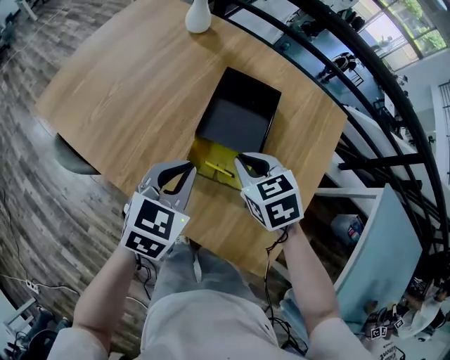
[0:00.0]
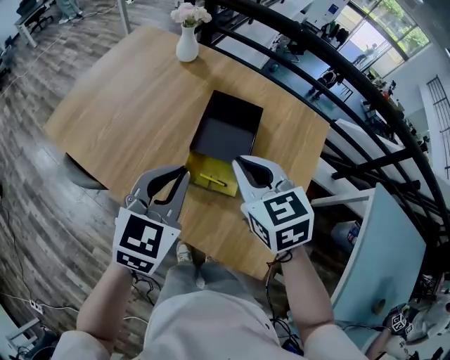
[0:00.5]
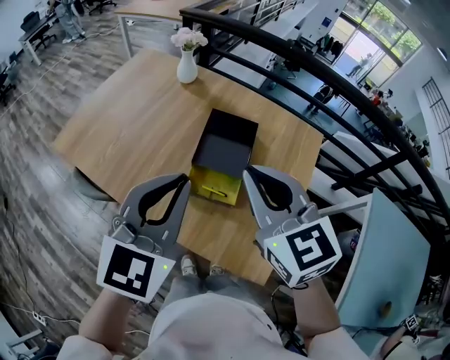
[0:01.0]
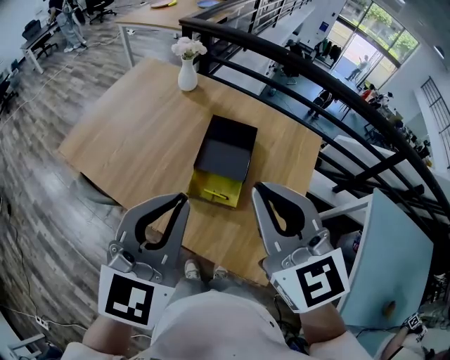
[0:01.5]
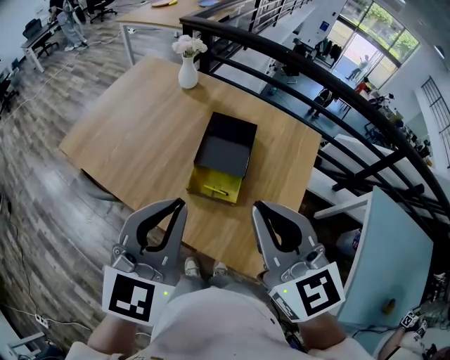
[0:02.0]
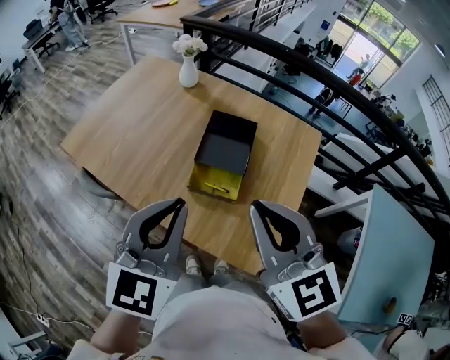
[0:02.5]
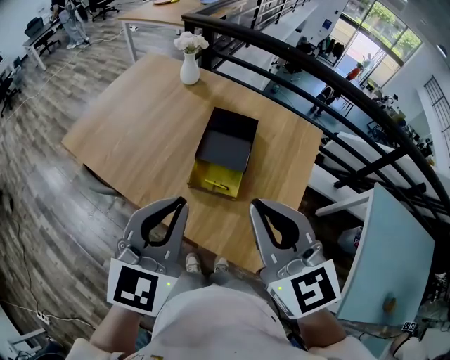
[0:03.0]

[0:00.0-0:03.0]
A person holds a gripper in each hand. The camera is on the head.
0:00.0 to 0:01.5: The two grippers go some 35 cm upward and backward. The left gripper turns by roughly 30 degrees. Meanwhile the right gripper angles its fingers upward, by about 40 degrees.
0:01.5 to 0:03.0: The right gripper moves roughly 5 cm.

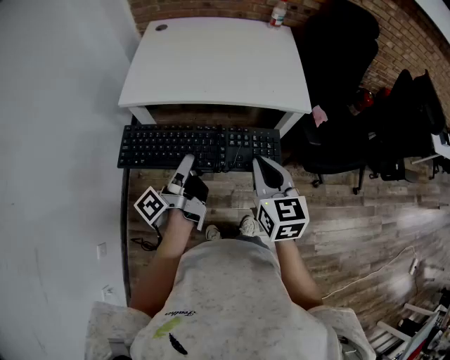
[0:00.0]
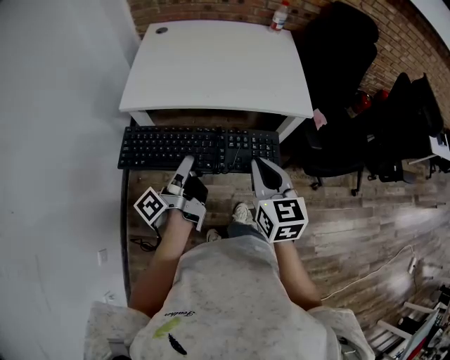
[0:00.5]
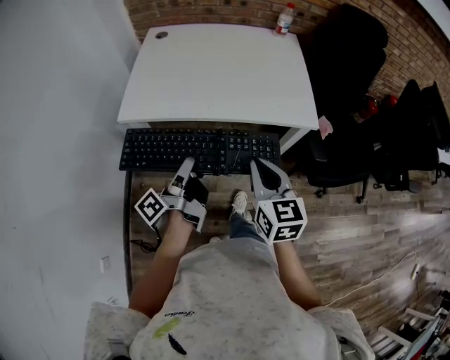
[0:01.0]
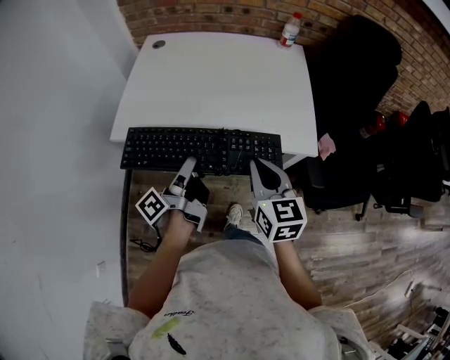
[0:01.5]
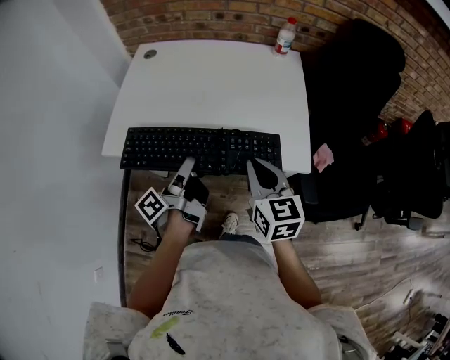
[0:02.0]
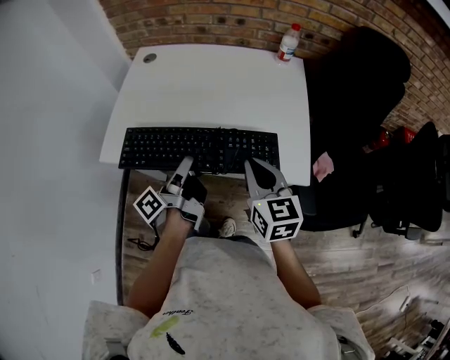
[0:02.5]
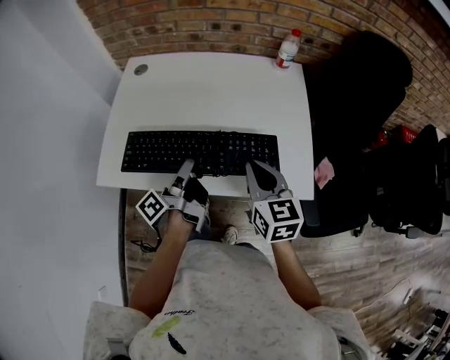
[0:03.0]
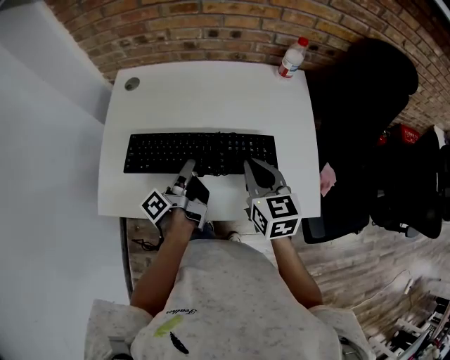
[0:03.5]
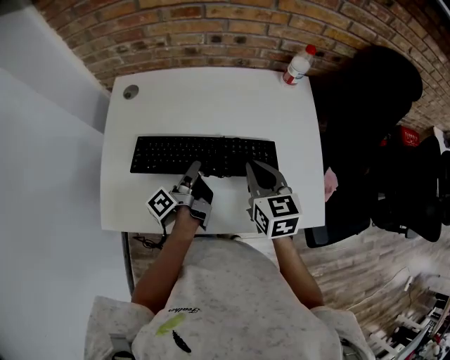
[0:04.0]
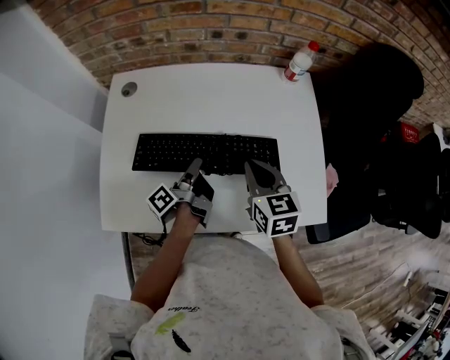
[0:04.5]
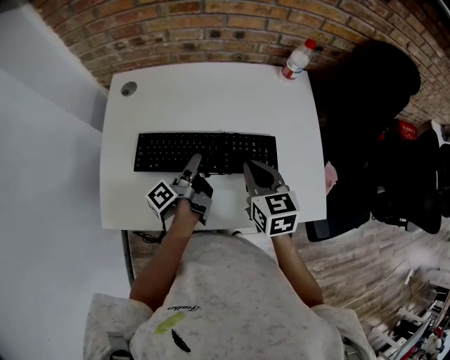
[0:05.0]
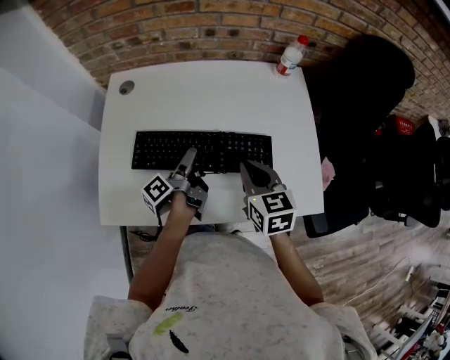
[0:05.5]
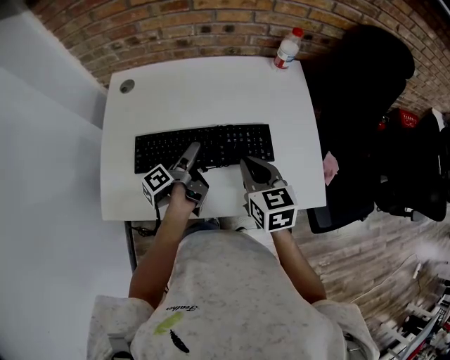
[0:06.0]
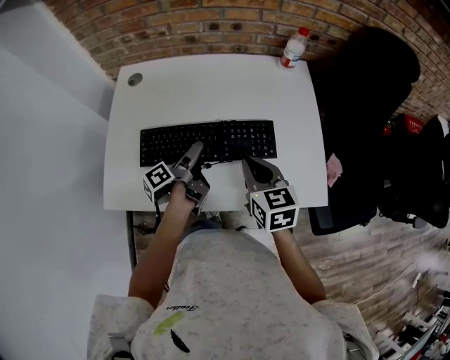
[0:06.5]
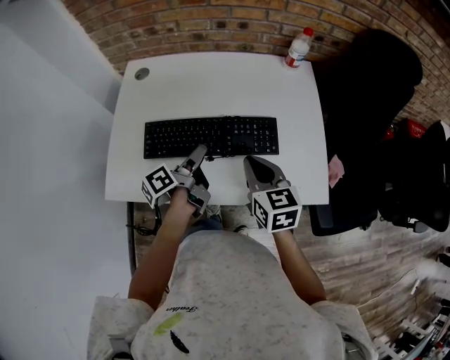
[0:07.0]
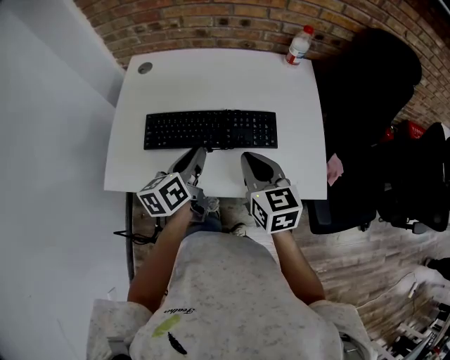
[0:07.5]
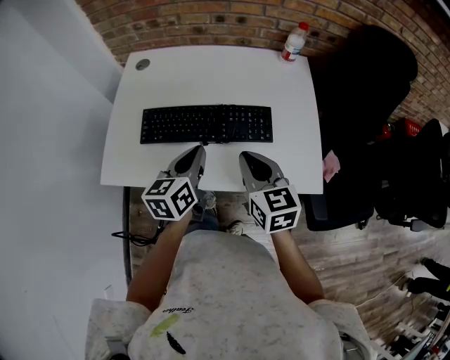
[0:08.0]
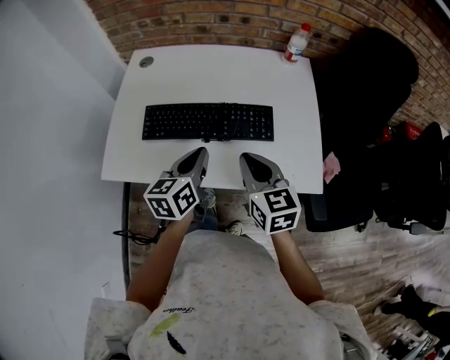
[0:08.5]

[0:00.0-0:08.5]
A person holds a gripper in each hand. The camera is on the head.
0:00.0 to 0:02.0: The right gripper shifts by some 30 cm.
0:02.0 to 0:04.0: The right gripper changes place by about 25 cm.
0:04.0 to 0:06.5: The right gripper ends up approximately 5 cm from where it was.
0:06.5 to 0:08.5: The right gripper shifts by approximately 10 cm.

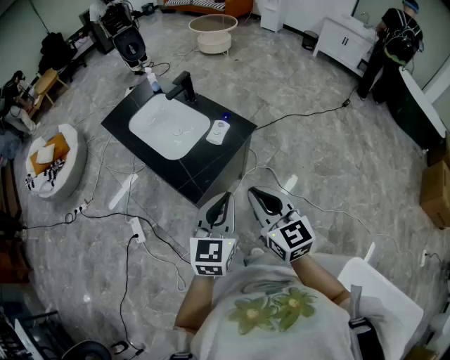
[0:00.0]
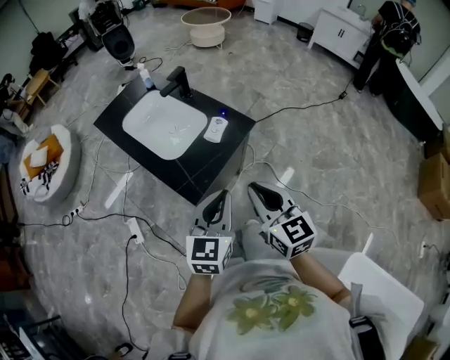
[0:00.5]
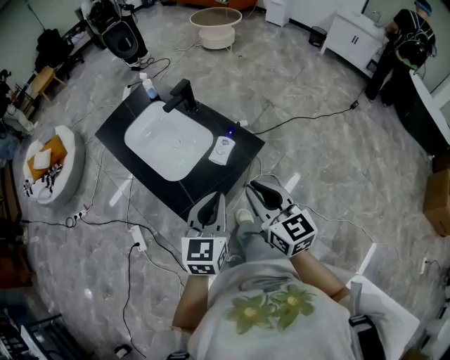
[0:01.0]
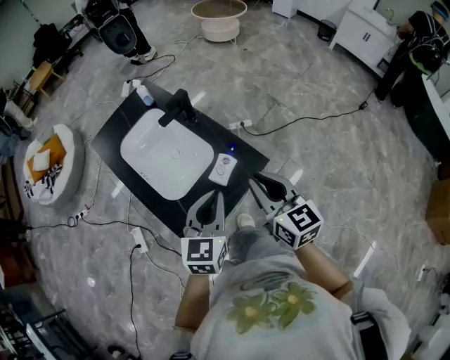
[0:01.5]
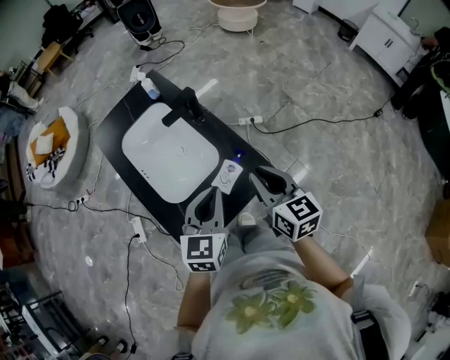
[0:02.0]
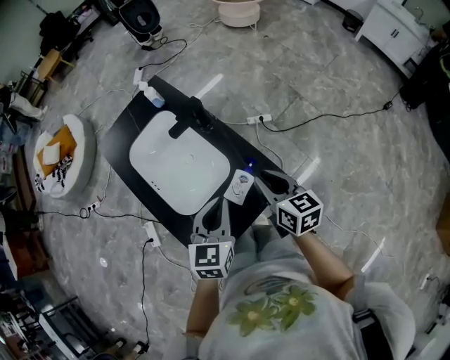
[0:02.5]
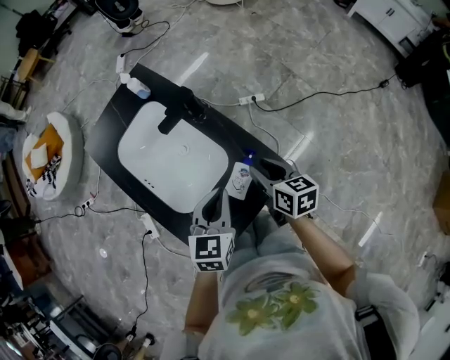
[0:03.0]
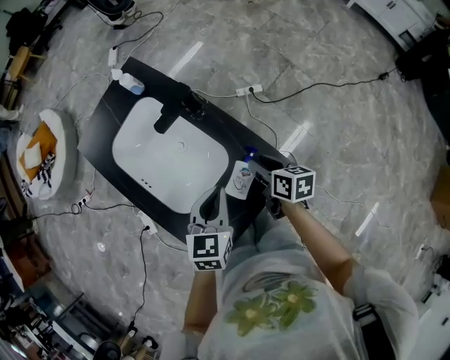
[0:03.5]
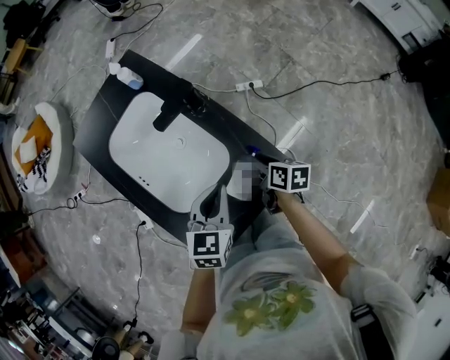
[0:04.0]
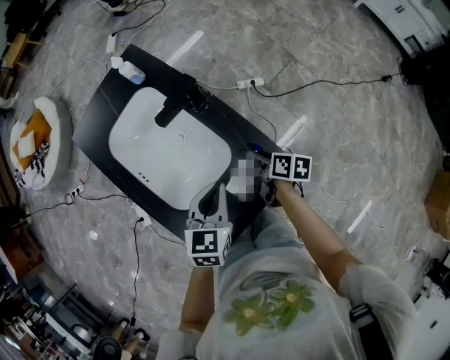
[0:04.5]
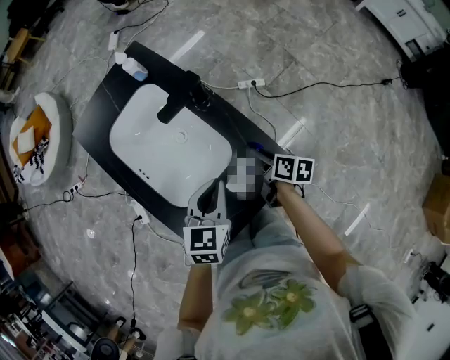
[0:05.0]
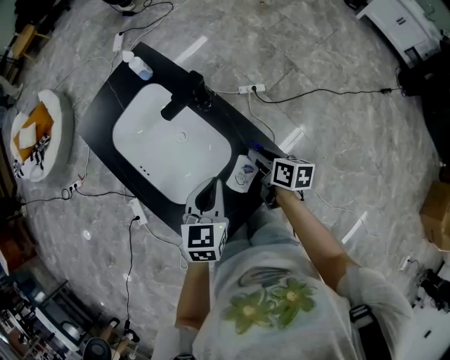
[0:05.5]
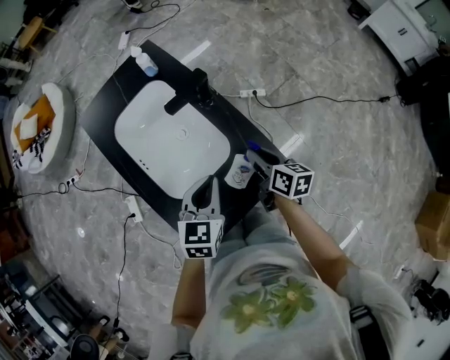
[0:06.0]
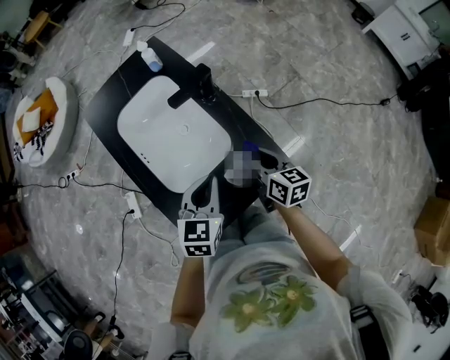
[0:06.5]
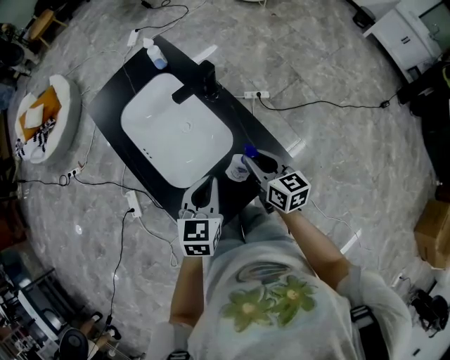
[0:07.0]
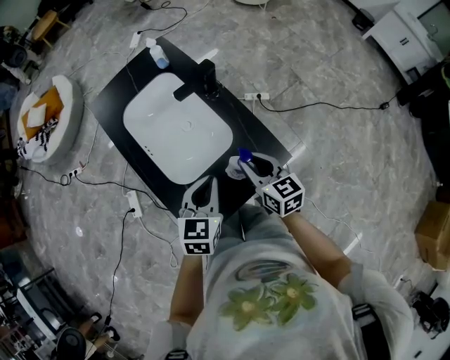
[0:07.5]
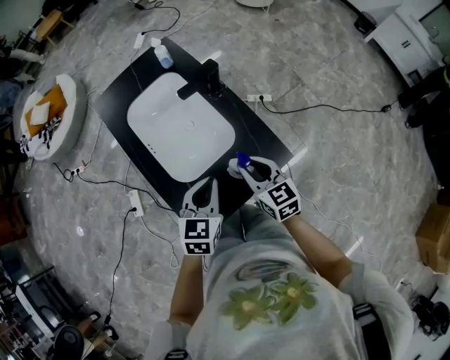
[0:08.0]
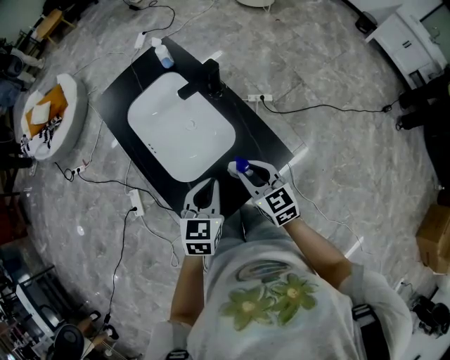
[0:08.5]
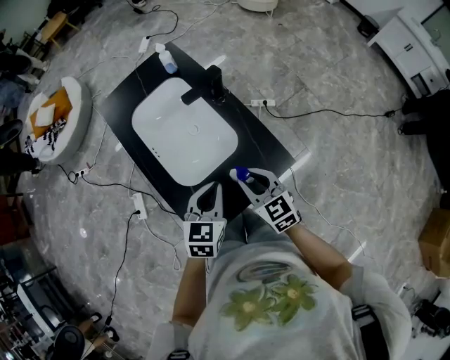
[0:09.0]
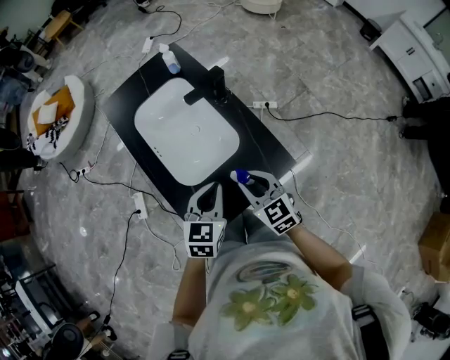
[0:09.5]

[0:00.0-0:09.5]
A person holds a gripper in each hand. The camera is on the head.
0:00.0 to 0:02.0: The two grippers go roughly 40 cm forward.
0:02.0 to 0:04.0: The left gripper travels downward and forward by roughly 15 cm; the right gripper travels downward and forward by some 30 cm, rotates some 40 degrees, and opens its fingers.
0:04.0 to 0:05.5: The grippers make only small movements.
0:05.5 to 0:07.5: The right gripper moves upward, backward and to the left, roughly 15 cm, and swivels about 40 degrees; the left gripper shifts about 10 cm backward.
0:07.5 to 0:09.5: The right gripper shifts by about 5 cm, and swivels about 20 degrees.

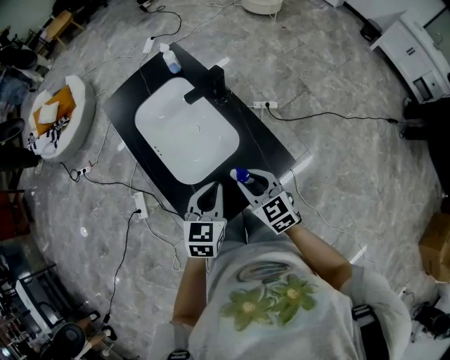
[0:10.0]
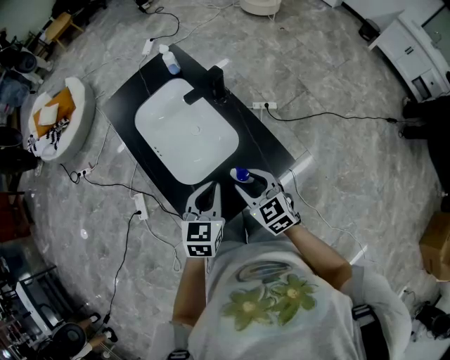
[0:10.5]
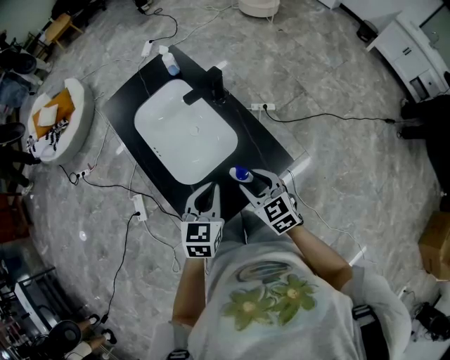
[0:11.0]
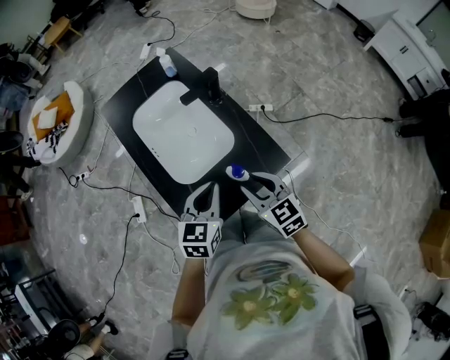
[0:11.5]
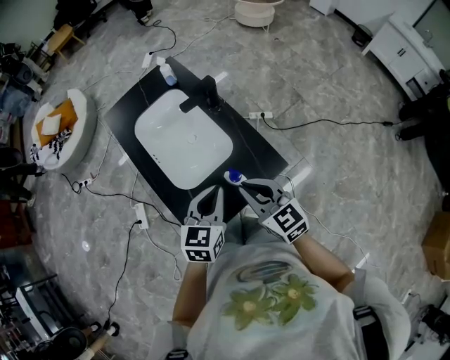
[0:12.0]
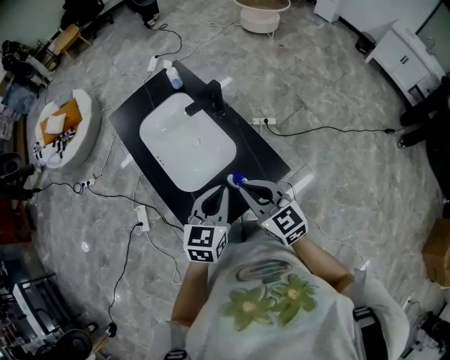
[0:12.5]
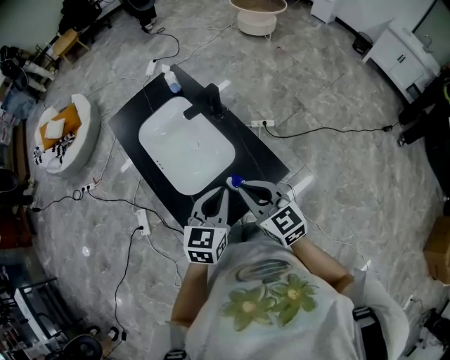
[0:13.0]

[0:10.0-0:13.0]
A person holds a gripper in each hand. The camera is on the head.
0:10.0 to 0:11.5: The grippers move only a little.
0:11.5 to 0:13.0: The left gripper moves approximately 5 cm. The right gripper heads upward, covering roughly 5 cm, and closes.

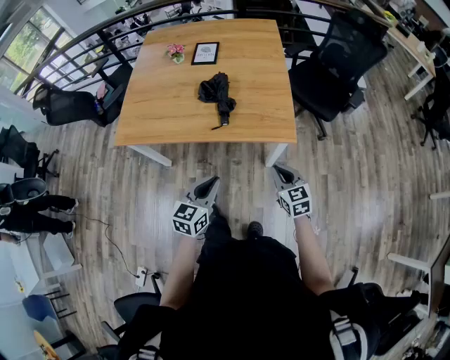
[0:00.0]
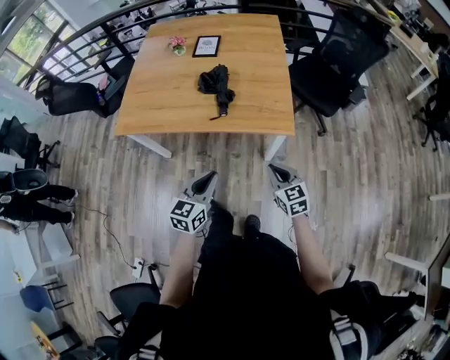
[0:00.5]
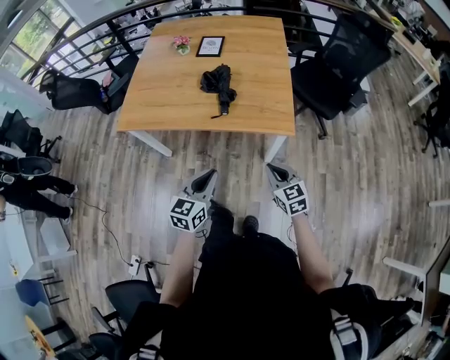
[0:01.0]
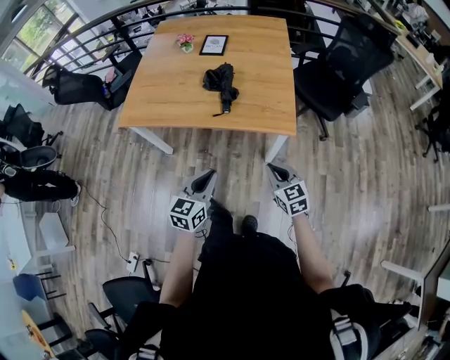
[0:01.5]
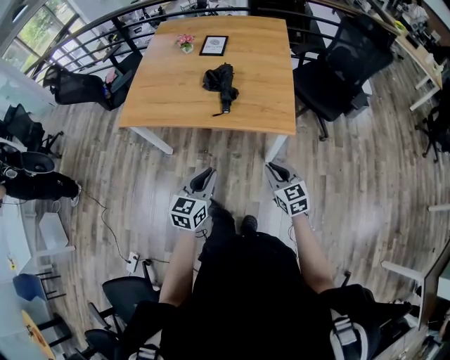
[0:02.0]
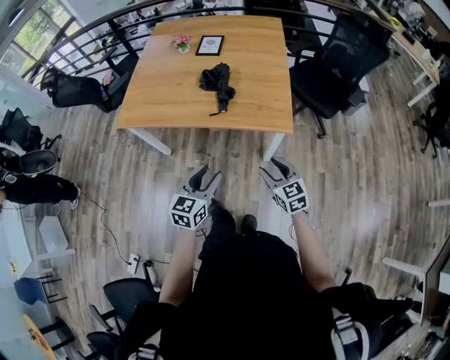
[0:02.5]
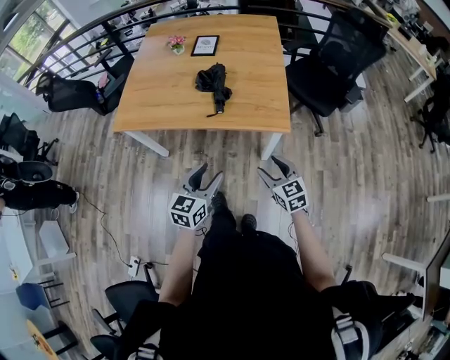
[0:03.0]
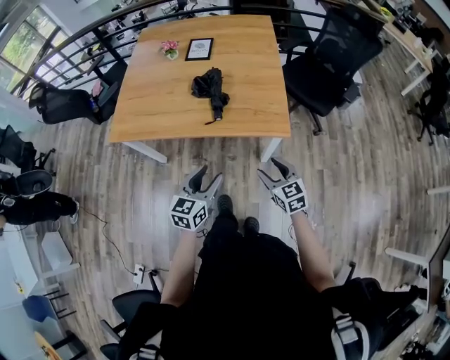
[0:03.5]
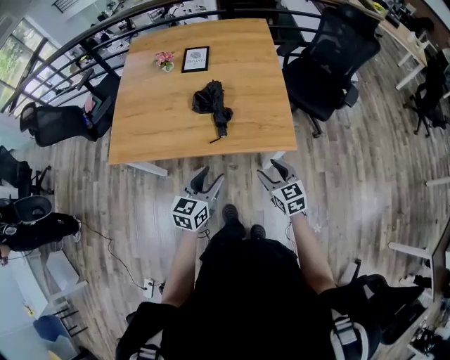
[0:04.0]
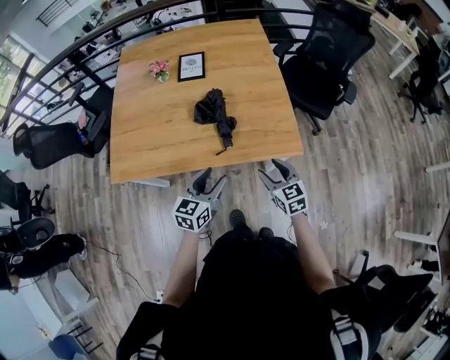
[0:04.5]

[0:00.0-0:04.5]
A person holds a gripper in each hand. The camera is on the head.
0:00.0 to 0:02.0: The right gripper moves backward, some 5 cm.
0:02.0 to 0:04.5: Both grippers travel together forward, approximately 20 cm. The right gripper opens up, while the left gripper opens.
